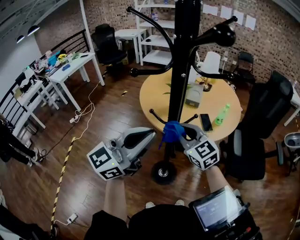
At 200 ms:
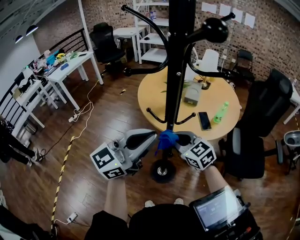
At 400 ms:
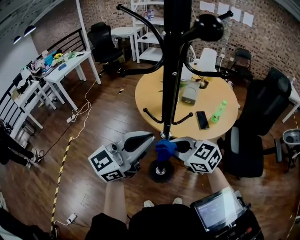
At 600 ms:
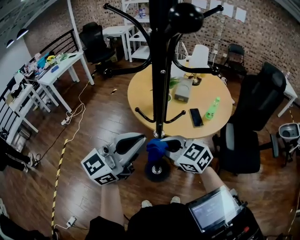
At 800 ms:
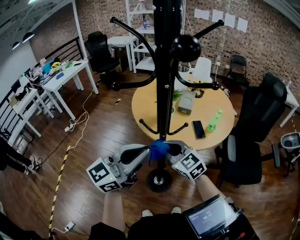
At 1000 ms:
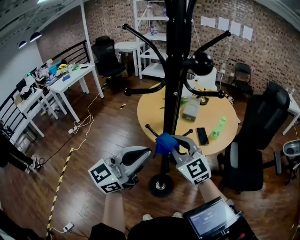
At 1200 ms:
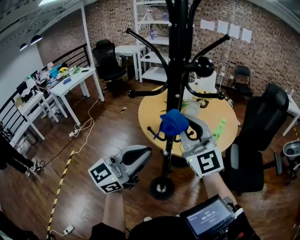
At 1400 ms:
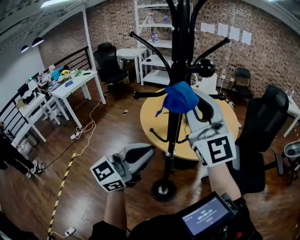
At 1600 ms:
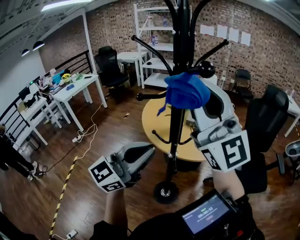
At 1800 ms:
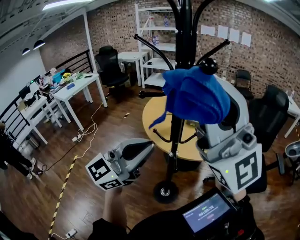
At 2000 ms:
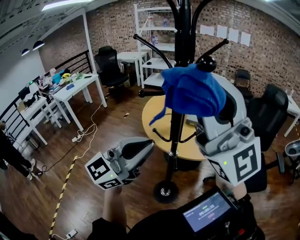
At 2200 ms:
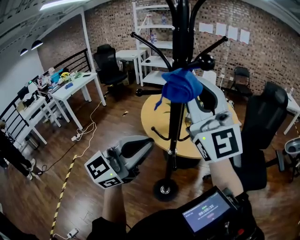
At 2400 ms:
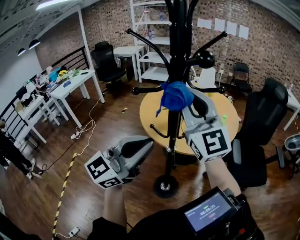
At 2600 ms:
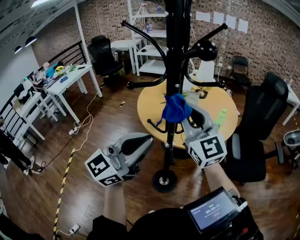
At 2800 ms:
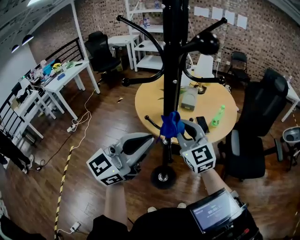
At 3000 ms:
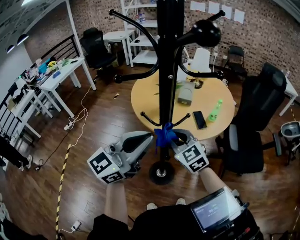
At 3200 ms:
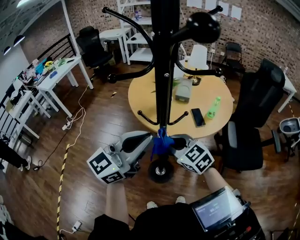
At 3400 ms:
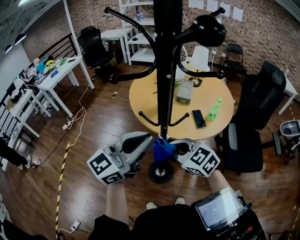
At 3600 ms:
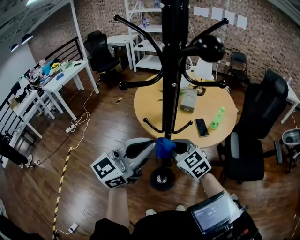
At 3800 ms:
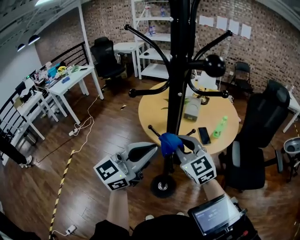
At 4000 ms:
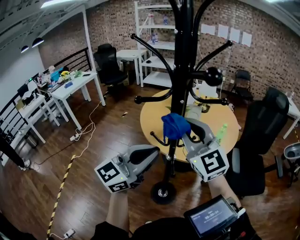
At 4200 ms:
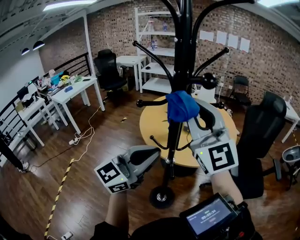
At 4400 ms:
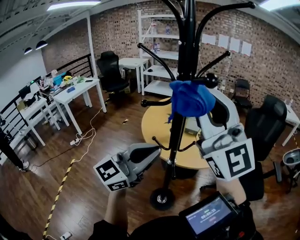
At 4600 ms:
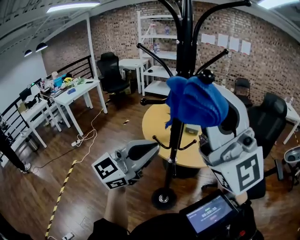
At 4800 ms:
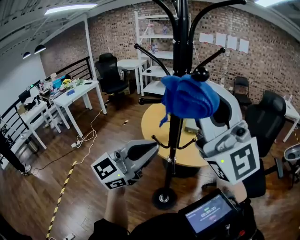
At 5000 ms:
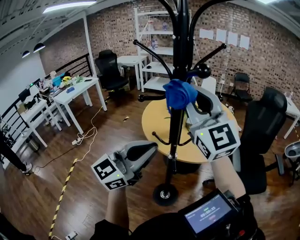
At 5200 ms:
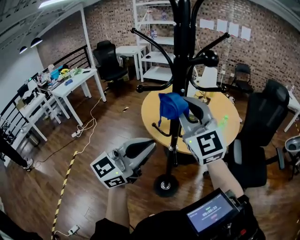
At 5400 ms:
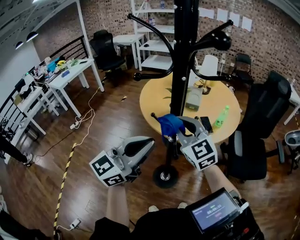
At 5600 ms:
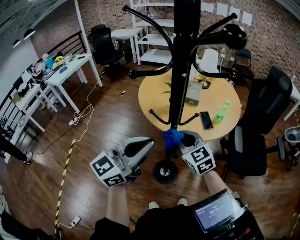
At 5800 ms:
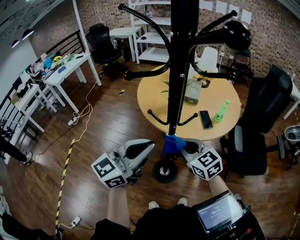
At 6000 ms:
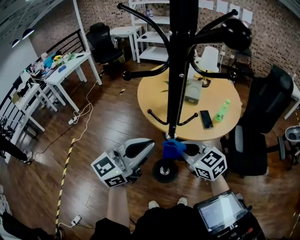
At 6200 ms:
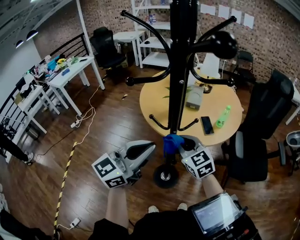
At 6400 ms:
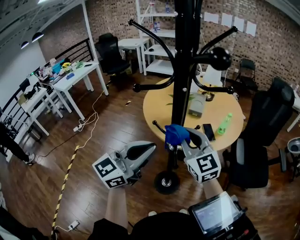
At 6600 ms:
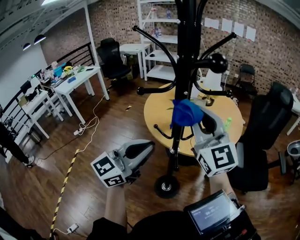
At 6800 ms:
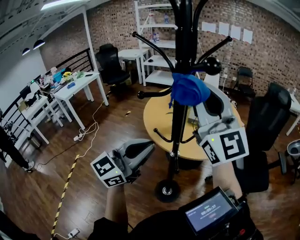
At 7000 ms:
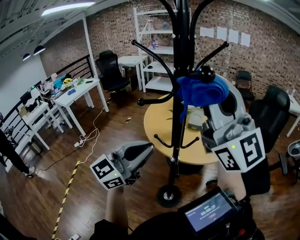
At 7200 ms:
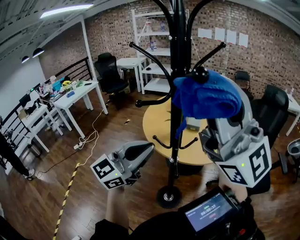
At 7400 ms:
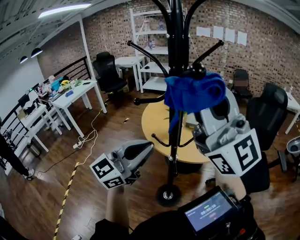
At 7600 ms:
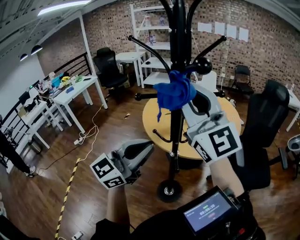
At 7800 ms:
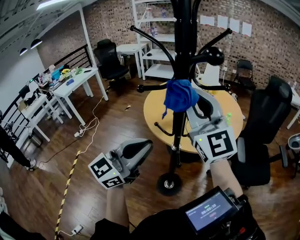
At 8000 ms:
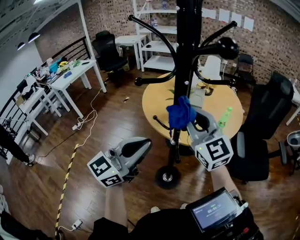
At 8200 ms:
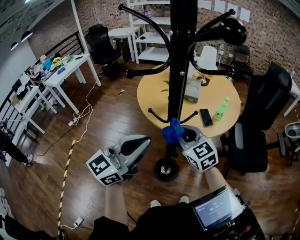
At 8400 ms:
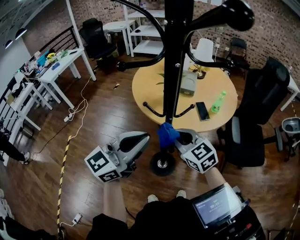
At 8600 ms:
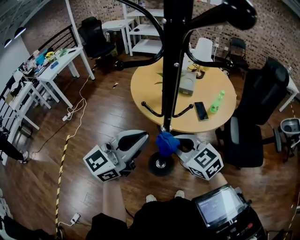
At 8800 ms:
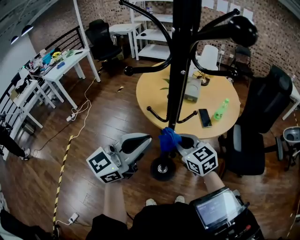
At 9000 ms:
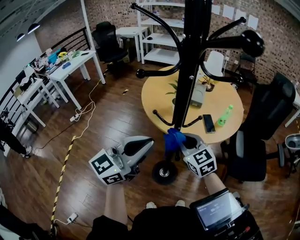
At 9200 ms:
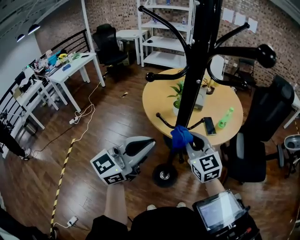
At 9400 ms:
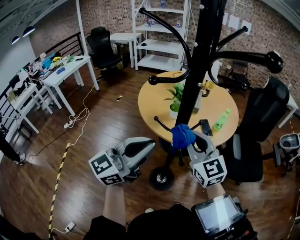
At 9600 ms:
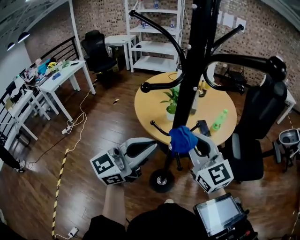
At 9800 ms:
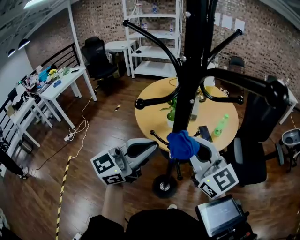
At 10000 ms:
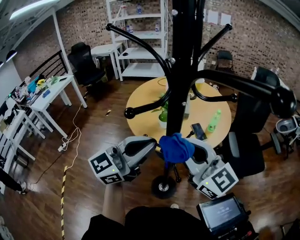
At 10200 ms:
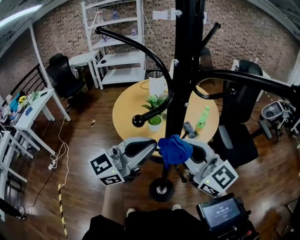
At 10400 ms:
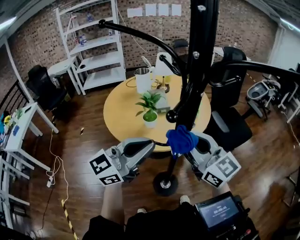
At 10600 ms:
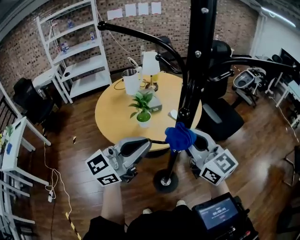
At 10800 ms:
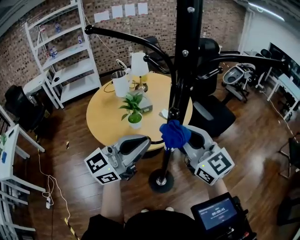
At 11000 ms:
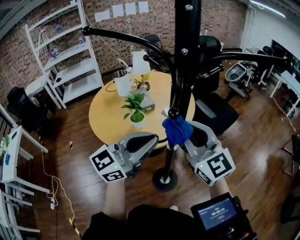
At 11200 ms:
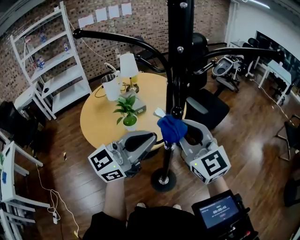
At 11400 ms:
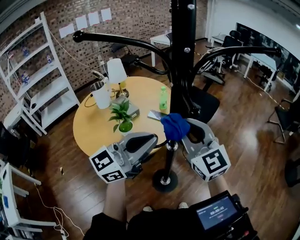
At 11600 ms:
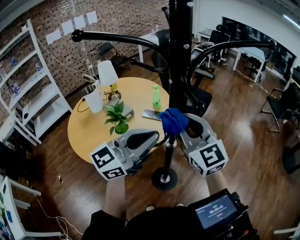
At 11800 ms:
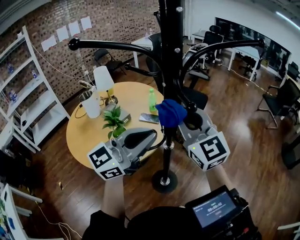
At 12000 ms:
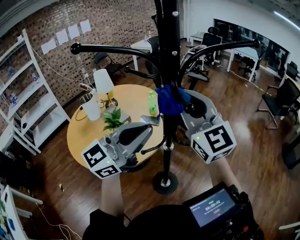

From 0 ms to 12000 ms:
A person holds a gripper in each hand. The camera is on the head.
From 0 ms to 1600 ms: The right gripper shifts some 35 cm upward, and points its fingers about 50 degrees further upward.
From 1600 ms to 3000 ms: The left gripper shifts by about 5 cm, while the right gripper travels downward by roughly 35 cm, and tilts its fingers approximately 50 degrees downward.
From 3000 ms to 4400 ms: The left gripper ends up some 5 cm from where it was. The right gripper moves upward, some 40 cm, and angles its fingers upward, by about 50 degrees.
From 4400 ms to 6000 ms: The right gripper moves downward, roughly 40 cm, and angles its fingers downward, by roughly 50 degrees, while the left gripper goes approximately 10 cm downward.
From 6000 ms to 7600 ms: The right gripper is displaced upward by approximately 35 cm, and points its fingers about 50 degrees further upward, while the left gripper heads upward, covering about 10 cm.
From 7600 ms to 9000 ms: The left gripper travels downward by approximately 5 cm, while the right gripper travels downward by approximately 35 cm, and points its fingers roughly 50 degrees further downward.
From 9000 ms to 10400 ms: The left gripper moves about 10 cm, and changes its angle by about 40 degrees, while the right gripper travels upward by some 15 cm, and rotates about 40 degrees.
From 10400 ms to 12000 ms: The left gripper shifts approximately 5 cm upward, and swivels some 40 degrees, while the right gripper is displaced upward by roughly 10 cm, and changes its angle by some 50 degrees.

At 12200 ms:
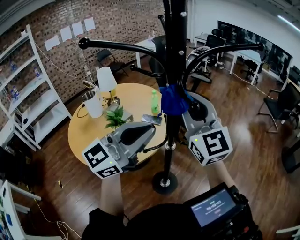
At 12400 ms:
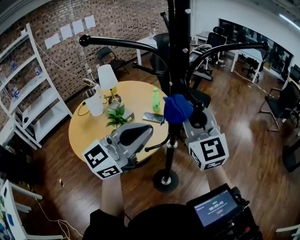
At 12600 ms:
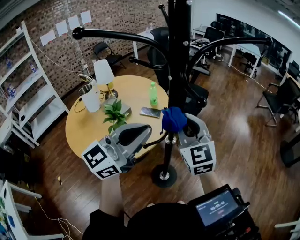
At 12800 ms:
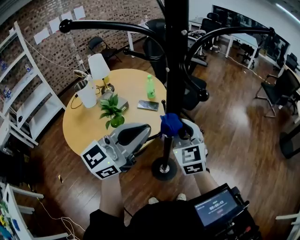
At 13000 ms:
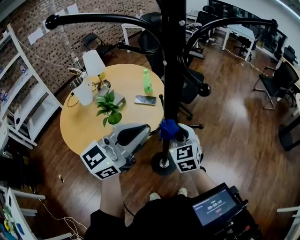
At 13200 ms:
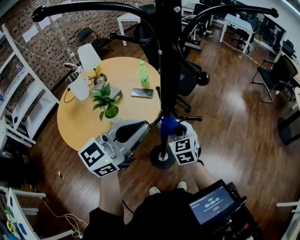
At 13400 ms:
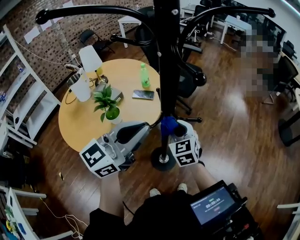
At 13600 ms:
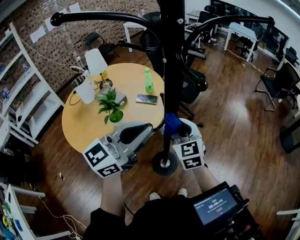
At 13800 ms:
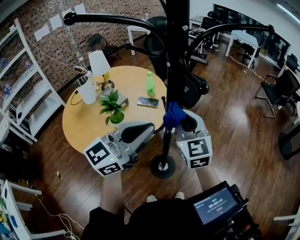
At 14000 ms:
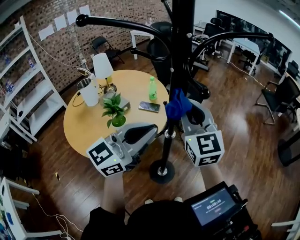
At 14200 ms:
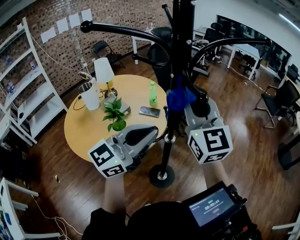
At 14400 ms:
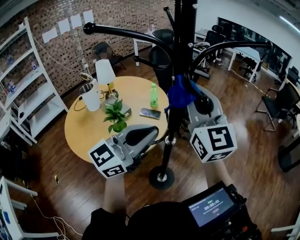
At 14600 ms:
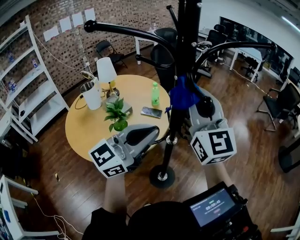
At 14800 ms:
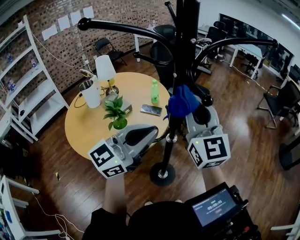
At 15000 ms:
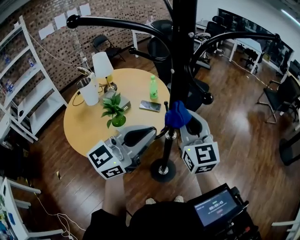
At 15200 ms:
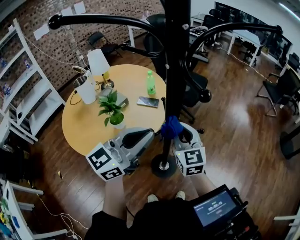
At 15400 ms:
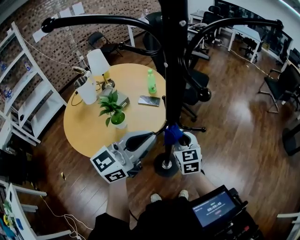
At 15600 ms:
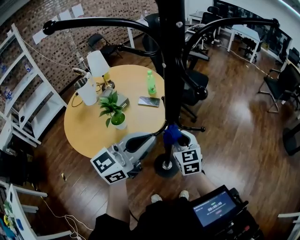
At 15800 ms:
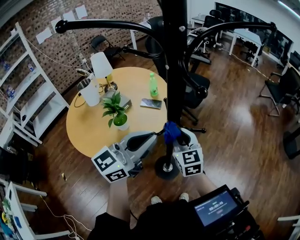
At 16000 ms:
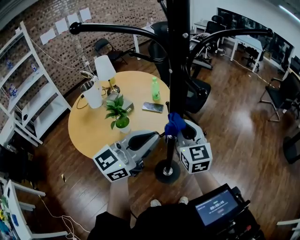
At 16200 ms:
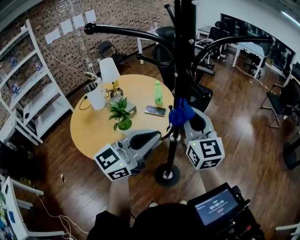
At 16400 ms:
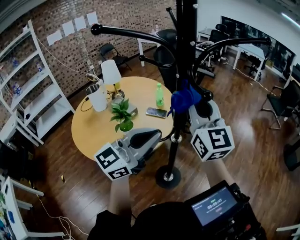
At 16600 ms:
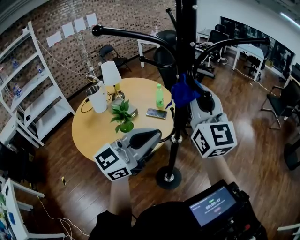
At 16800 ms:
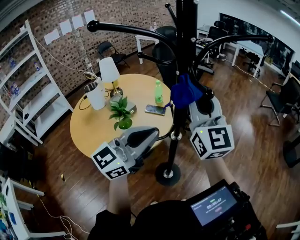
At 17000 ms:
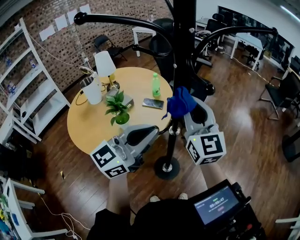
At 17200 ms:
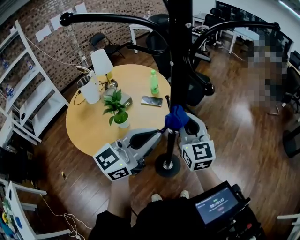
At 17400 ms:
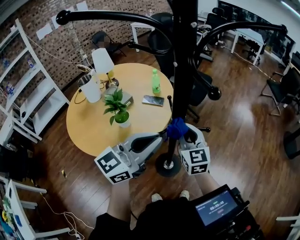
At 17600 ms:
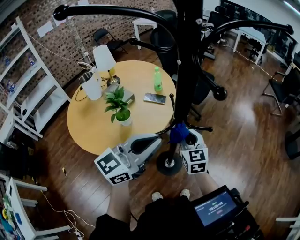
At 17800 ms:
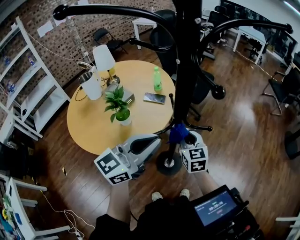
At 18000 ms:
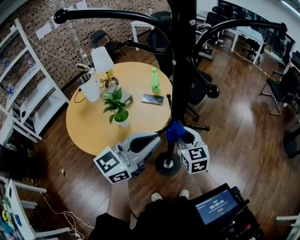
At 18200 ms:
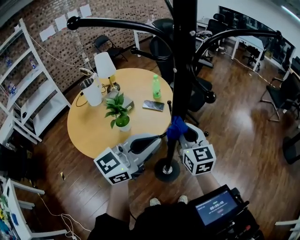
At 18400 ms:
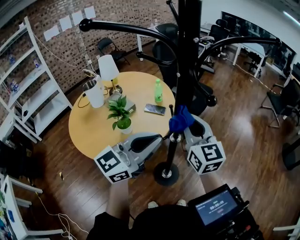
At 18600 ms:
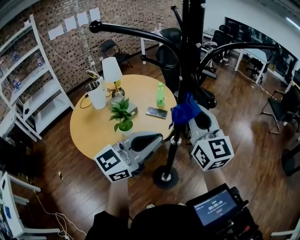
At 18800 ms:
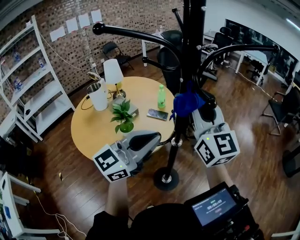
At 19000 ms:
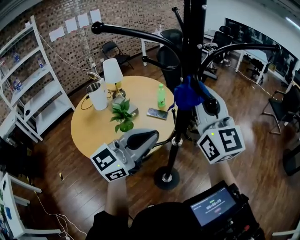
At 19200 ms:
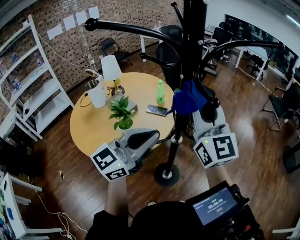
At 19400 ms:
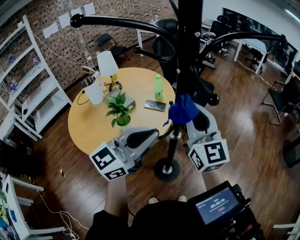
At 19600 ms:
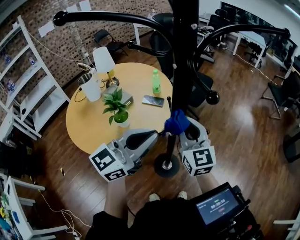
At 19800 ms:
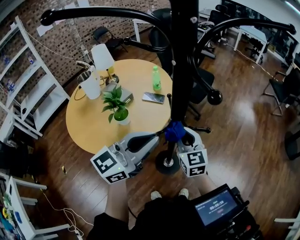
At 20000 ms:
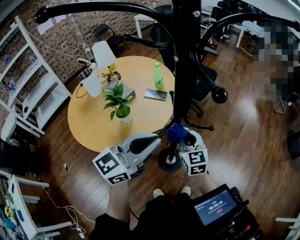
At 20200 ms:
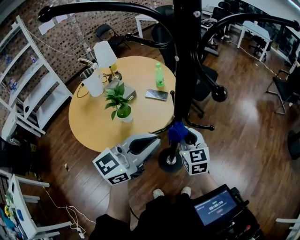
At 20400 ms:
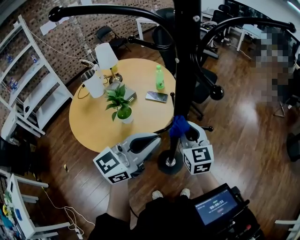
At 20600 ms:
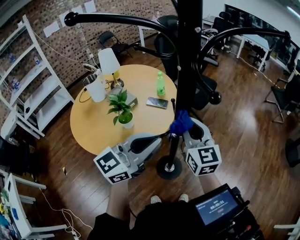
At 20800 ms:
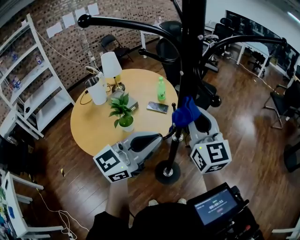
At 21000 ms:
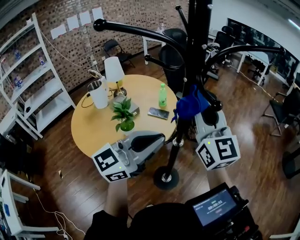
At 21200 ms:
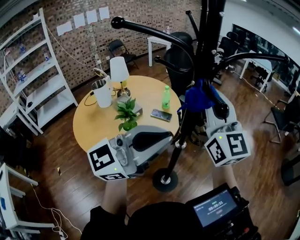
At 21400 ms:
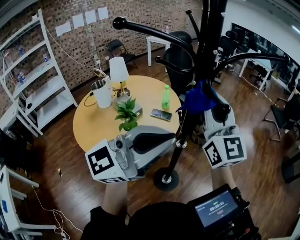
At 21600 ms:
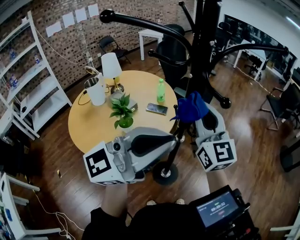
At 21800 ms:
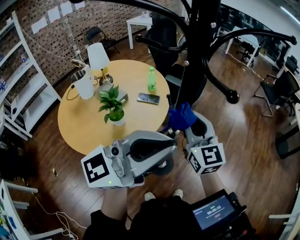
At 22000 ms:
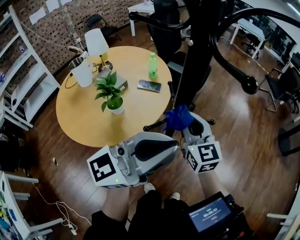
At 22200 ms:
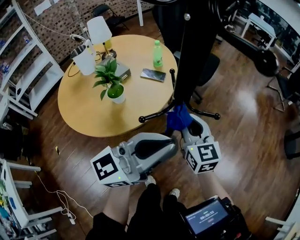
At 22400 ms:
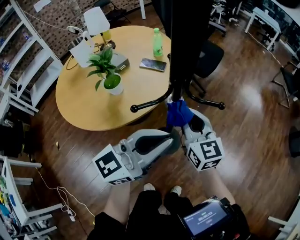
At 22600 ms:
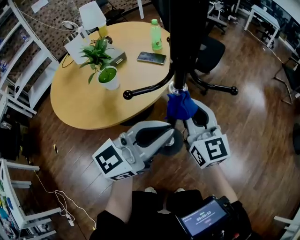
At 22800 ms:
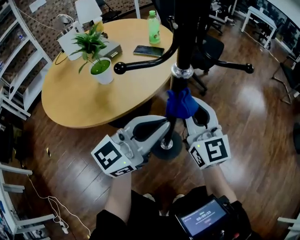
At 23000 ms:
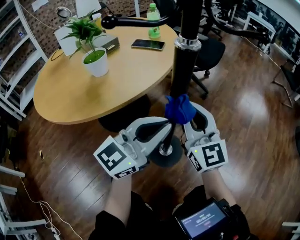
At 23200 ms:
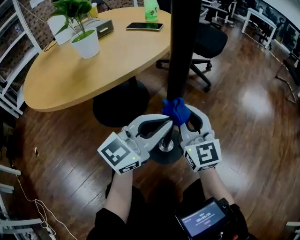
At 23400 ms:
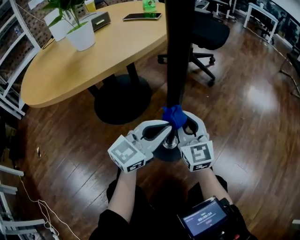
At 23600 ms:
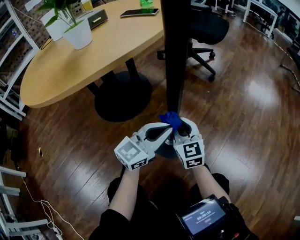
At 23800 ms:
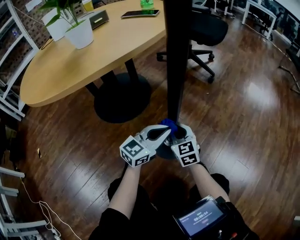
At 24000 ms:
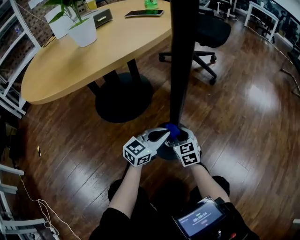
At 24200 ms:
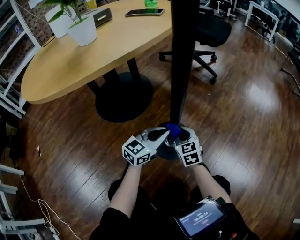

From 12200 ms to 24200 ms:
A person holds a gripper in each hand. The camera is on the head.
From 12200 ms to 13800 ms: The right gripper travels downward by approximately 15 cm, and swivels roughly 20 degrees. Meanwhile the left gripper goes approximately 5 cm downward.
From 13800 ms to 15200 ms: The right gripper reaches roughly 15 cm upward, then returns.
From 15200 ms to 16600 ms: The right gripper goes roughly 25 cm upward, and turns by some 30 degrees.
From 16600 ms to 18200 ms: The left gripper heads downward, covering about 5 cm; the right gripper shifts about 25 cm downward, and swivels roughly 30 degrees.
From 18200 ms to 19800 ms: The right gripper goes upward and returns, about 25 cm each way.
From 19800 ms to 21200 ms: The right gripper moves upward, approximately 30 cm, and angles its fingers upward, by about 30 degrees. The left gripper travels upward by roughly 15 cm, and rotates some 20 degrees.
From 21200 ms to 22600 ms: The grippers both shift downward by roughly 35 cm. The right gripper swivels approximately 20 degrees.
From 22600 ms to 24200 ms: Both grippers travel together downward, about 60 cm. The left gripper rotates some 20 degrees, while the right gripper tilts its fingers about 30 degrees downward.
